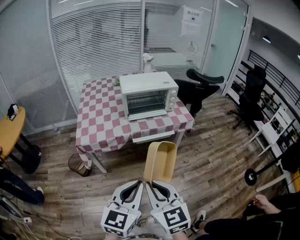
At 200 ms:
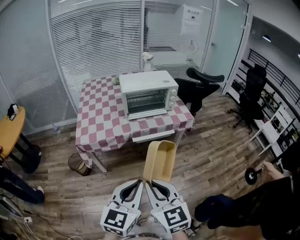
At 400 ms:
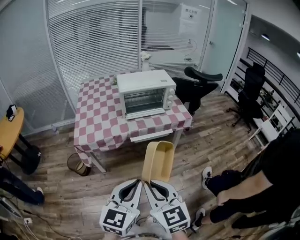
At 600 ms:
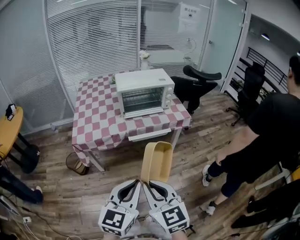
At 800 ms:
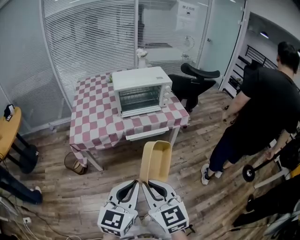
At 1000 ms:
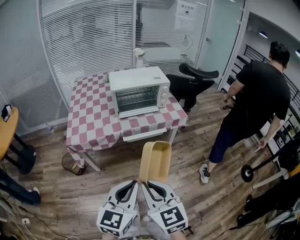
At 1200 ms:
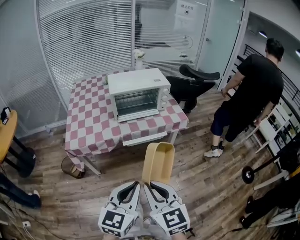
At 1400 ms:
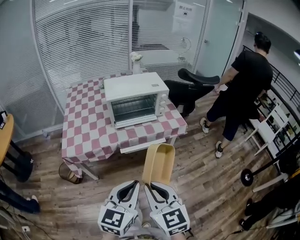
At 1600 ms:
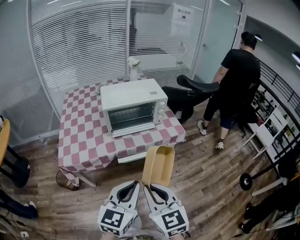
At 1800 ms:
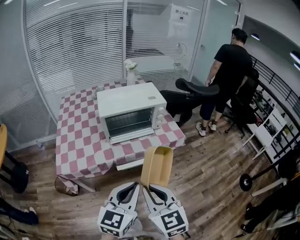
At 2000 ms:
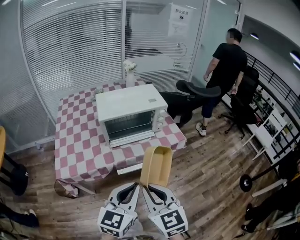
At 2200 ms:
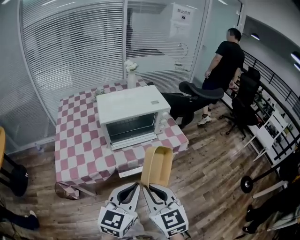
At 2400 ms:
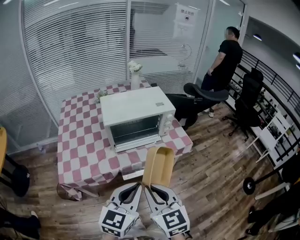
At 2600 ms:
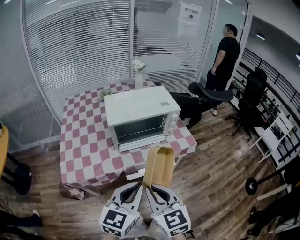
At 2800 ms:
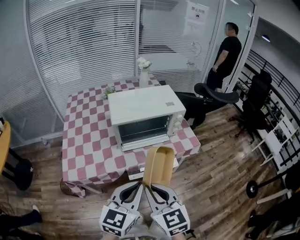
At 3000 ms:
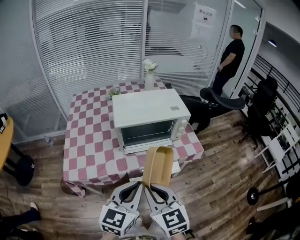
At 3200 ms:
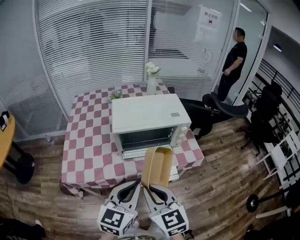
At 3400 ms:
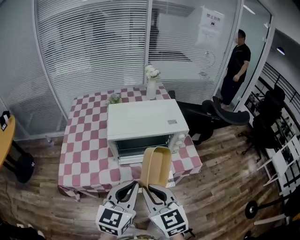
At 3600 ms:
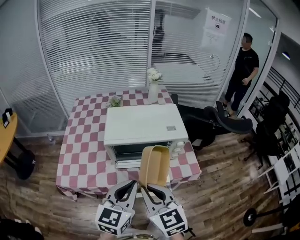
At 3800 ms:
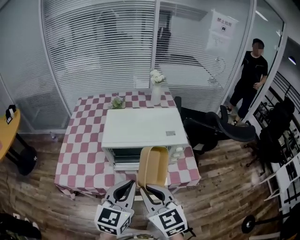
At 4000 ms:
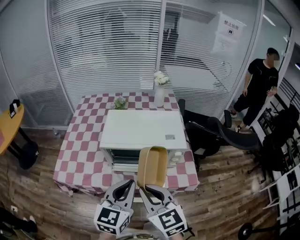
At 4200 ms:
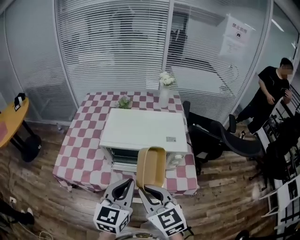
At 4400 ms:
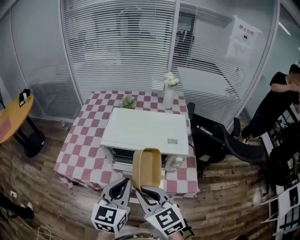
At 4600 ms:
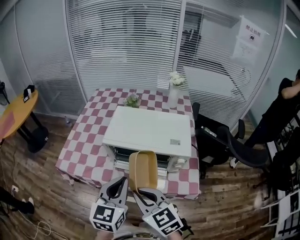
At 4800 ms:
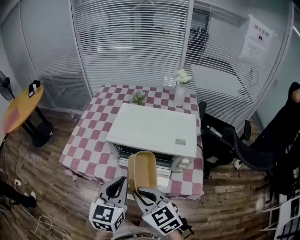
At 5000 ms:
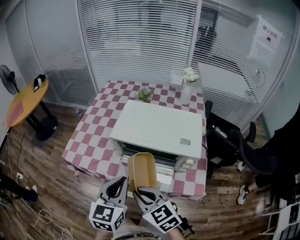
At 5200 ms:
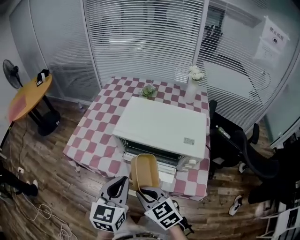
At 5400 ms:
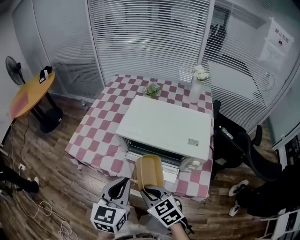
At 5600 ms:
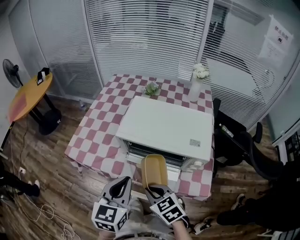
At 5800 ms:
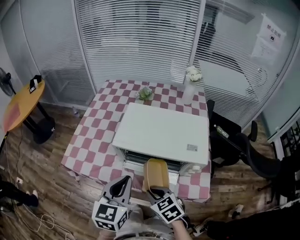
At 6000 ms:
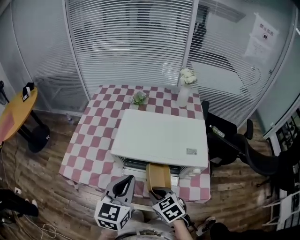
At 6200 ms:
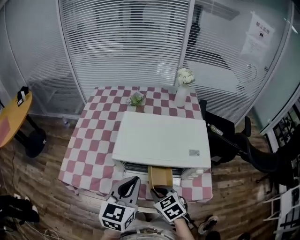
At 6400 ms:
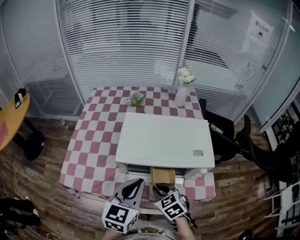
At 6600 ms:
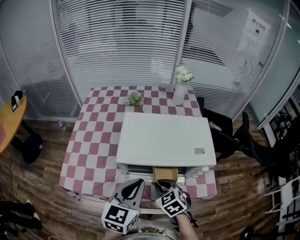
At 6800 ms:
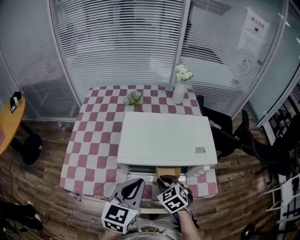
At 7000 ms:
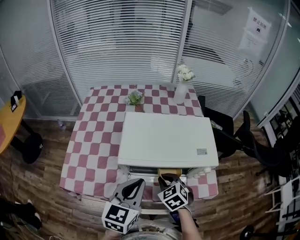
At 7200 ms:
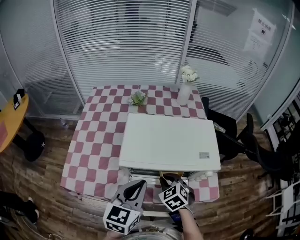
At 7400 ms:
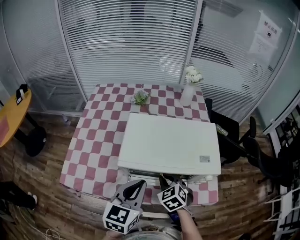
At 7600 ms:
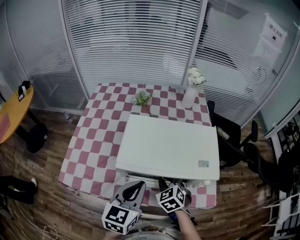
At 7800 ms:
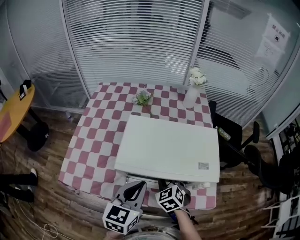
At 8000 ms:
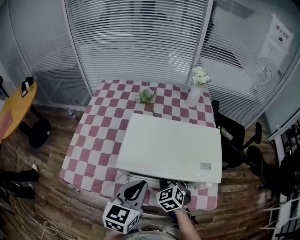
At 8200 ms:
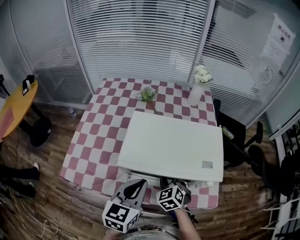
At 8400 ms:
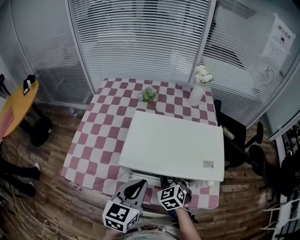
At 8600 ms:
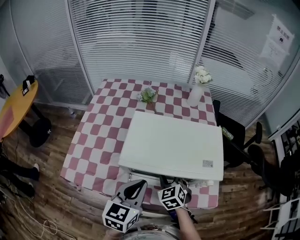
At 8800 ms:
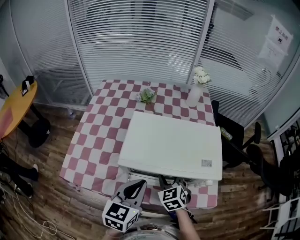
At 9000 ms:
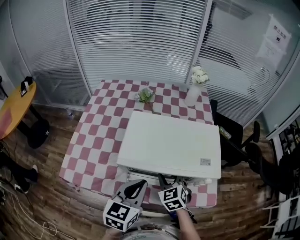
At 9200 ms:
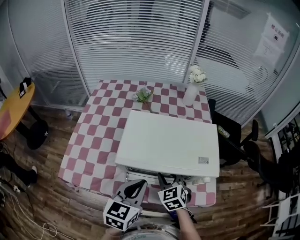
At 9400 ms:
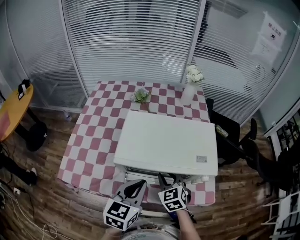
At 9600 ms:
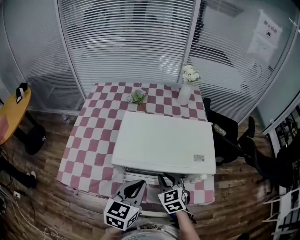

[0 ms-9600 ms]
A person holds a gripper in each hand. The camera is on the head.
0 ms to 1600 ms: The grippers both shift forward by roughly 15 cm.
1600 ms to 3200 ms: Both grippers move forward, roughly 20 cm.
3200 ms to 4800 ms: The left gripper moves roughly 15 cm, and changes its angle by roughly 30 degrees, while the right gripper ends up approximately 15 cm from where it was, and changes its angle by some 40 degrees.
4800 ms to 6400 ms: The left gripper goes some 10 cm forward; the right gripper moves downward and forward, about 20 cm, and swivels approximately 30 degrees.
6400 ms to 8000 ms: The right gripper moves forward, approximately 10 cm.
8000 ms to 9600 ms: The grippers move only a little.

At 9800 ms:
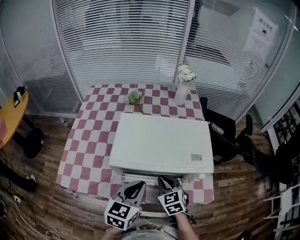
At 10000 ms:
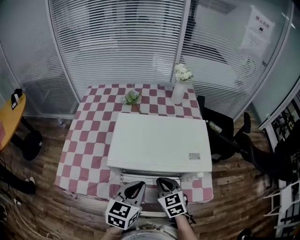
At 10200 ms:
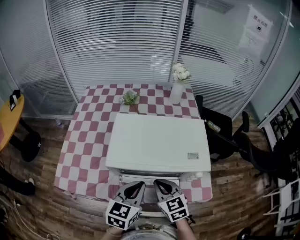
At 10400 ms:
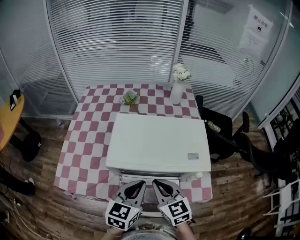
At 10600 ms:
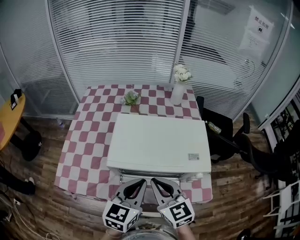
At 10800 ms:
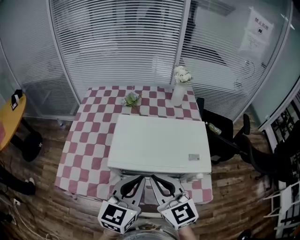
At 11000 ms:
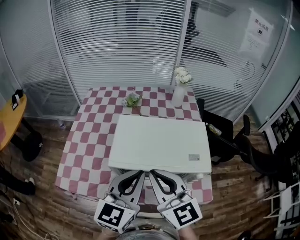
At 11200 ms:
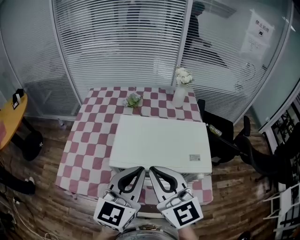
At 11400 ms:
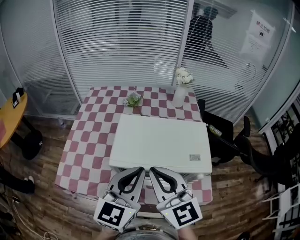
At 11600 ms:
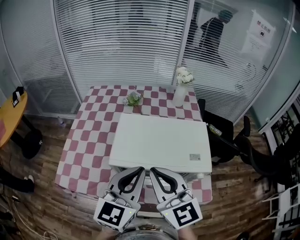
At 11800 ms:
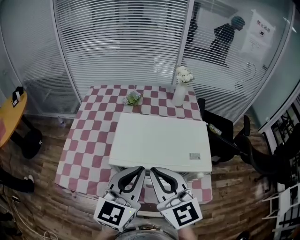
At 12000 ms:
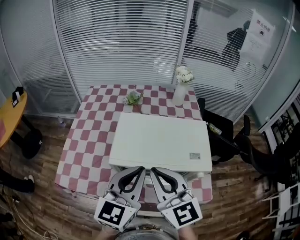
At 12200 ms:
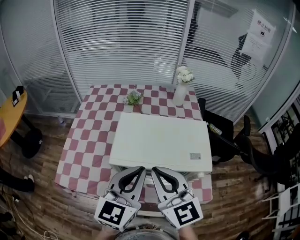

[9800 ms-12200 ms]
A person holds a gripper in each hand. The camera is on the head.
9800 ms to 11000 ms: The left gripper shifts some 10 cm upward, while the right gripper heads upward, covering about 25 cm, and tilts its fingers approximately 40 degrees upward.
11000 ms to 12200 ms: There are only small adjustments of the grippers.

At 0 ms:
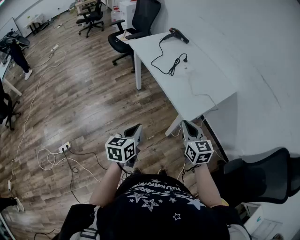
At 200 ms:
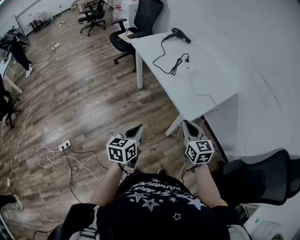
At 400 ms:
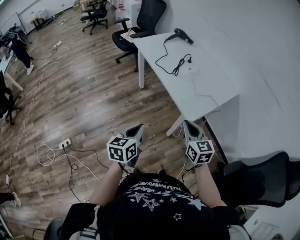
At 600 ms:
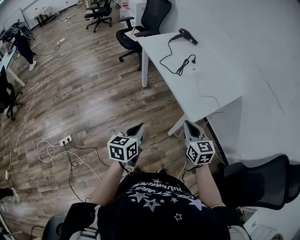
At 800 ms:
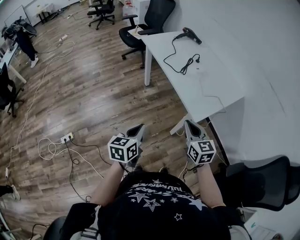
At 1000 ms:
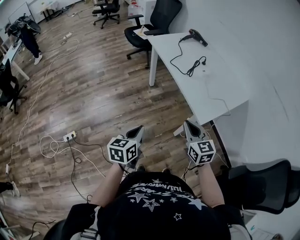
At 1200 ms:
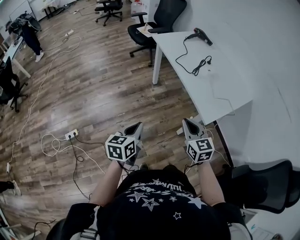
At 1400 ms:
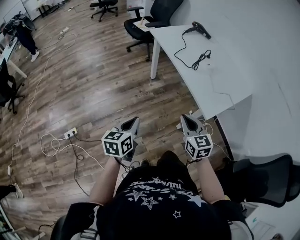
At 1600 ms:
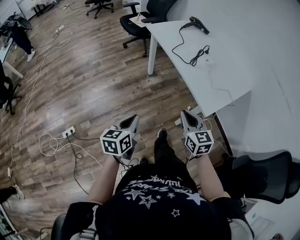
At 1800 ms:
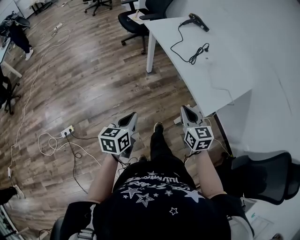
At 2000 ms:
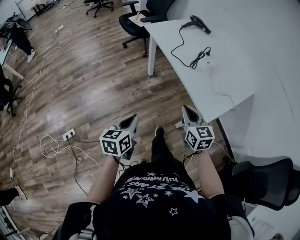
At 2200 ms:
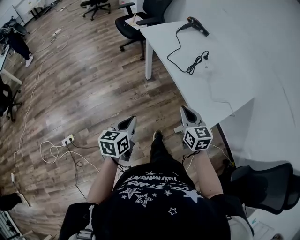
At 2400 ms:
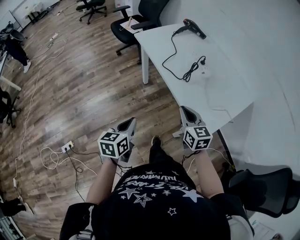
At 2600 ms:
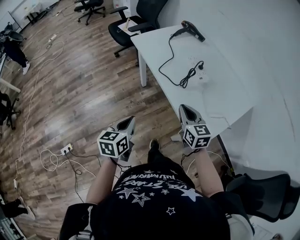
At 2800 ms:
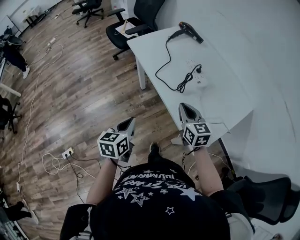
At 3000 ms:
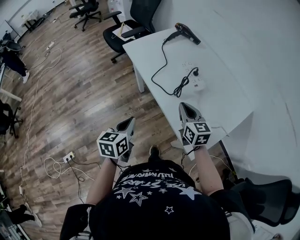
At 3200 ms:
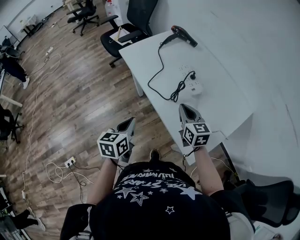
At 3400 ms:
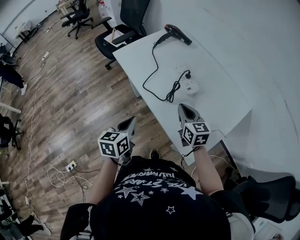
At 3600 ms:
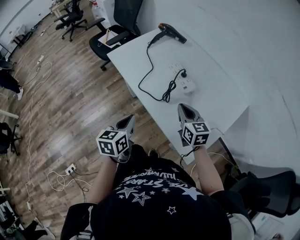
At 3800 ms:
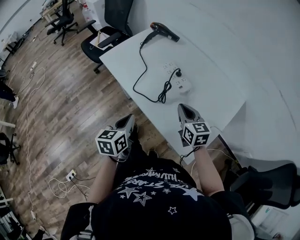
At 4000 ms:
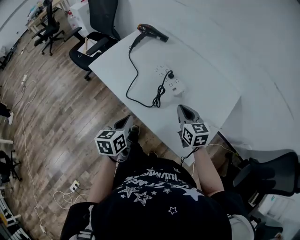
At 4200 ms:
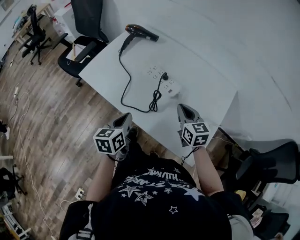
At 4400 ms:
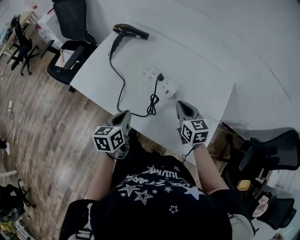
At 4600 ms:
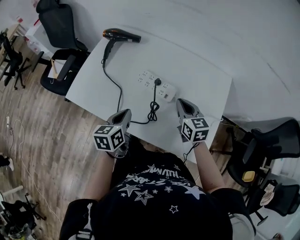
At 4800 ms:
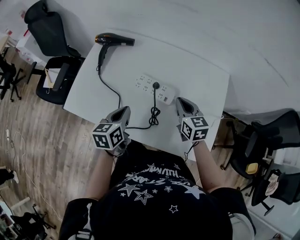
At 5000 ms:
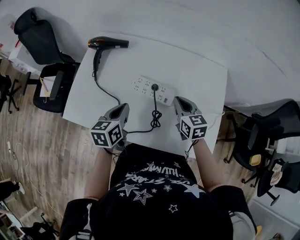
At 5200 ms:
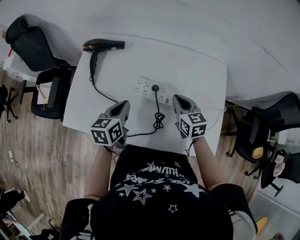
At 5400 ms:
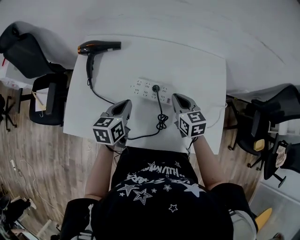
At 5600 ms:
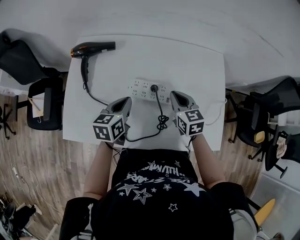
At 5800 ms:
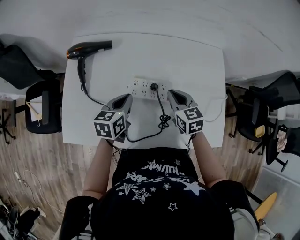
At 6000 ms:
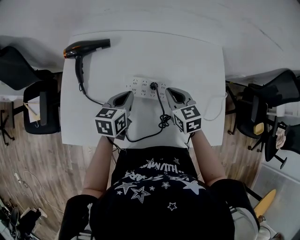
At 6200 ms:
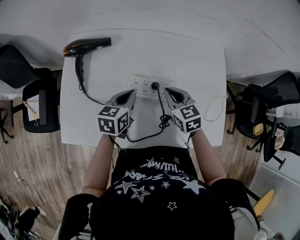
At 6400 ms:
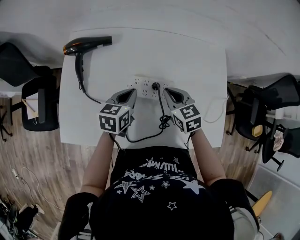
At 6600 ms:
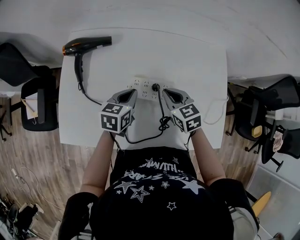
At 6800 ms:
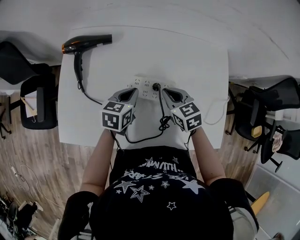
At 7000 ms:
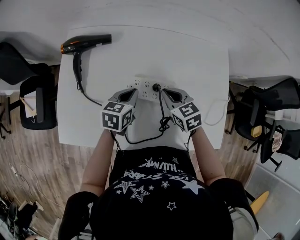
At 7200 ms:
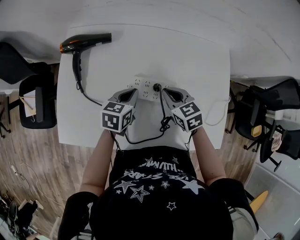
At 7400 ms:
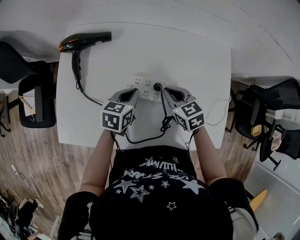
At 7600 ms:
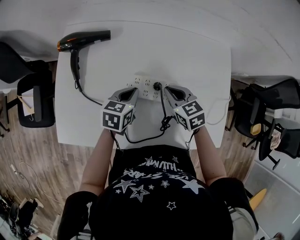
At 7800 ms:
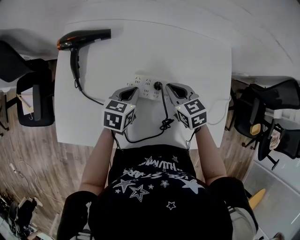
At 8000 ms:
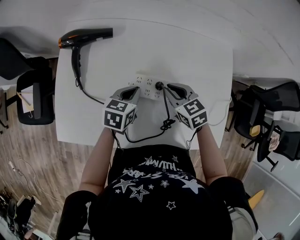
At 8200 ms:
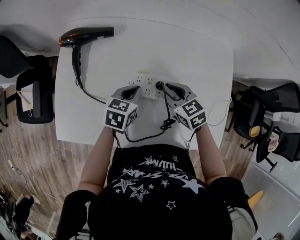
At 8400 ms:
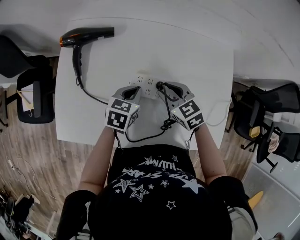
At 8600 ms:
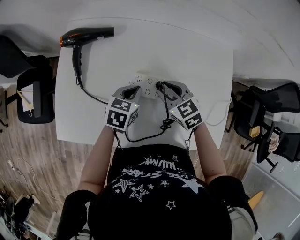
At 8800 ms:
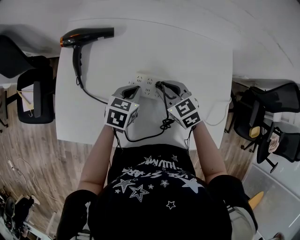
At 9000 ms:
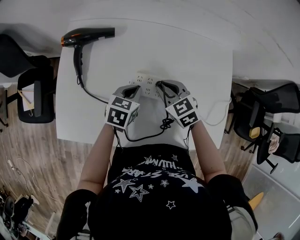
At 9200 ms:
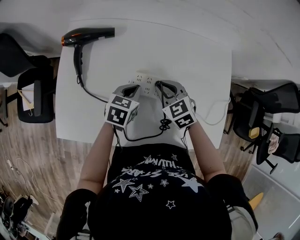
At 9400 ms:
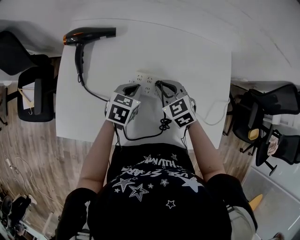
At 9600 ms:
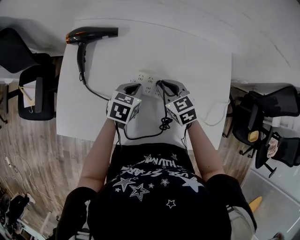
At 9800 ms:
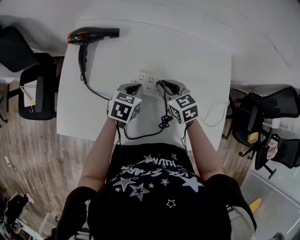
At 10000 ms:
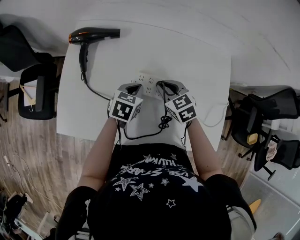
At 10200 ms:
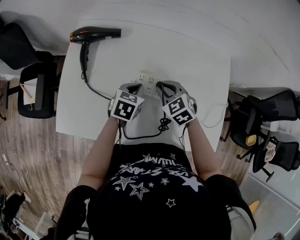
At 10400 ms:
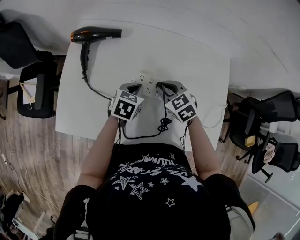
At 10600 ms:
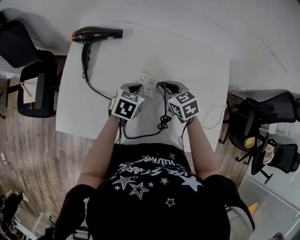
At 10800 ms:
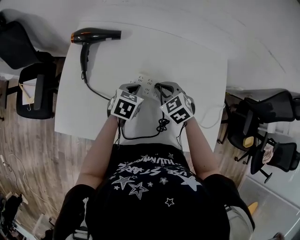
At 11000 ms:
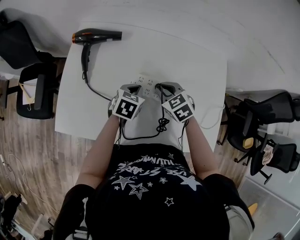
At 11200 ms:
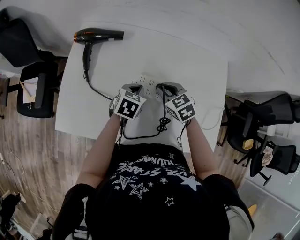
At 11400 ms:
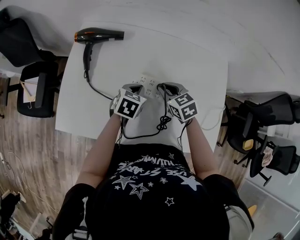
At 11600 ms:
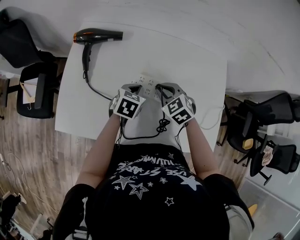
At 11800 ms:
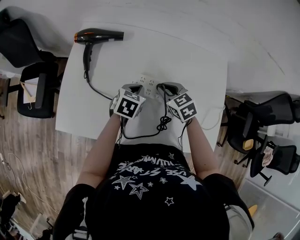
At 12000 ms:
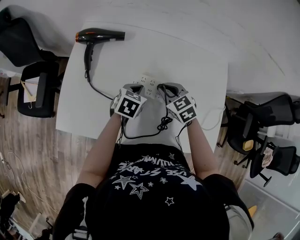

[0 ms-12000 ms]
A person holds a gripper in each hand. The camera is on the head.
0 ms to 1600 ms: Both grippers travel together to the left, roughly 15 cm.
1600 ms to 3000 ms: Both grippers travel together forward, some 30 cm.
3000 ms to 4400 ms: The right gripper ends up some 15 cm from where it was, and rotates about 30 degrees, while the left gripper moves approximately 25 cm, and rotates about 30 degrees.
4400 ms to 6000 ms: The left gripper moves roughly 20 cm, and changes its angle by some 40 degrees. The right gripper moves some 10 cm, and swivels about 20 degrees.
6000 ms to 7600 ms: The left gripper goes roughly 5 cm downward.
7600 ms to 9000 ms: The grippers make only small movements.
9000 ms to 12000 ms: There are only small adjustments of the grippers.
